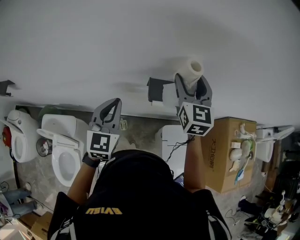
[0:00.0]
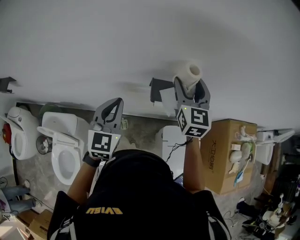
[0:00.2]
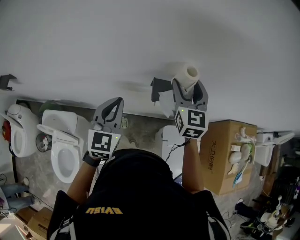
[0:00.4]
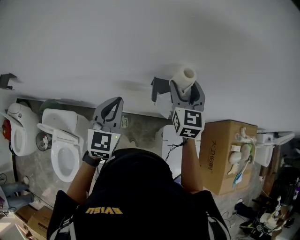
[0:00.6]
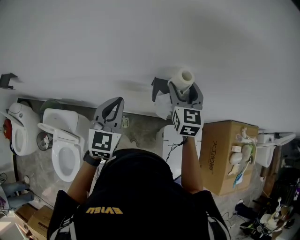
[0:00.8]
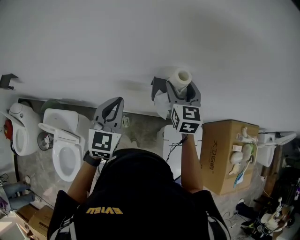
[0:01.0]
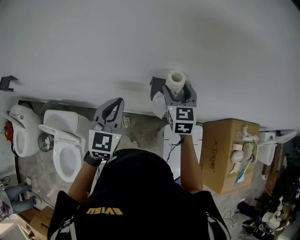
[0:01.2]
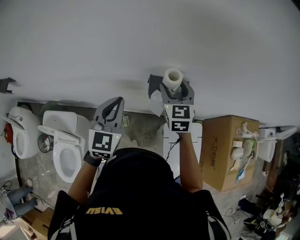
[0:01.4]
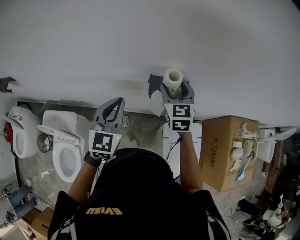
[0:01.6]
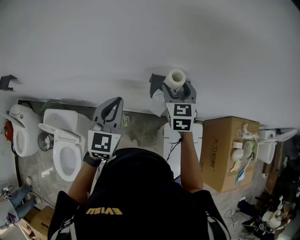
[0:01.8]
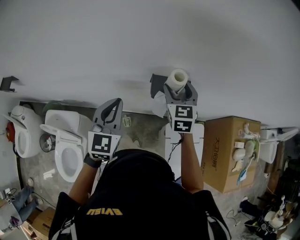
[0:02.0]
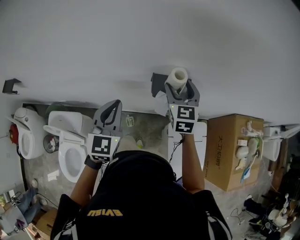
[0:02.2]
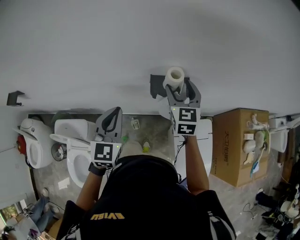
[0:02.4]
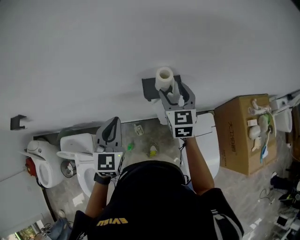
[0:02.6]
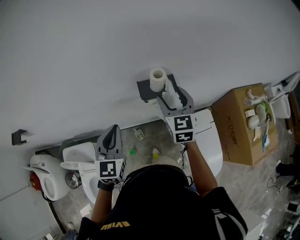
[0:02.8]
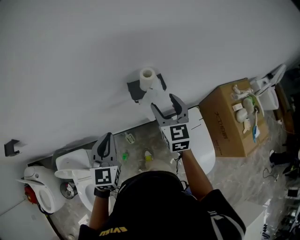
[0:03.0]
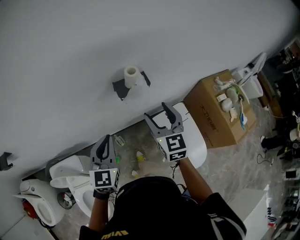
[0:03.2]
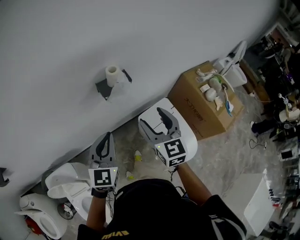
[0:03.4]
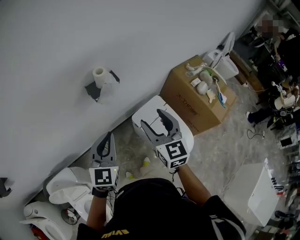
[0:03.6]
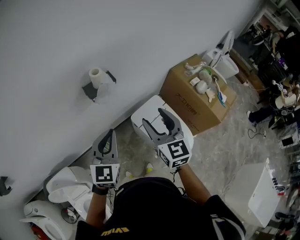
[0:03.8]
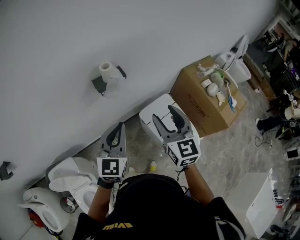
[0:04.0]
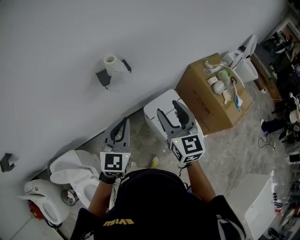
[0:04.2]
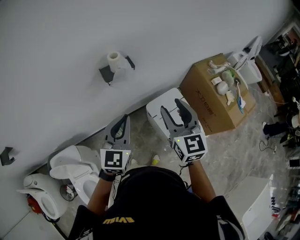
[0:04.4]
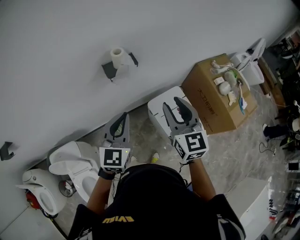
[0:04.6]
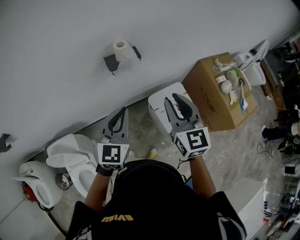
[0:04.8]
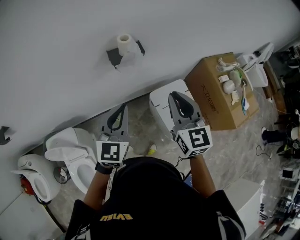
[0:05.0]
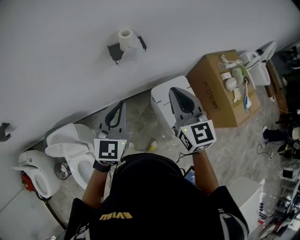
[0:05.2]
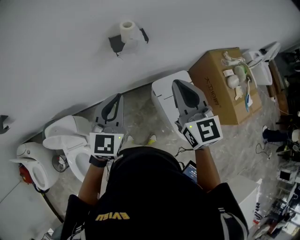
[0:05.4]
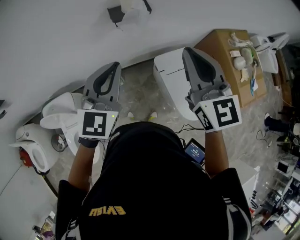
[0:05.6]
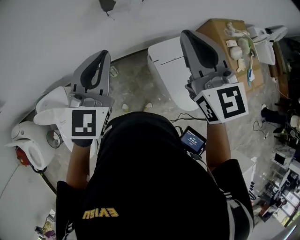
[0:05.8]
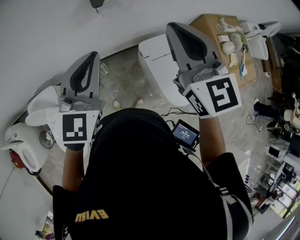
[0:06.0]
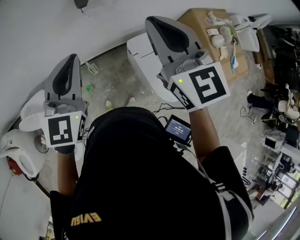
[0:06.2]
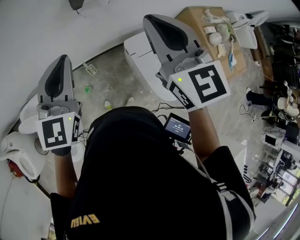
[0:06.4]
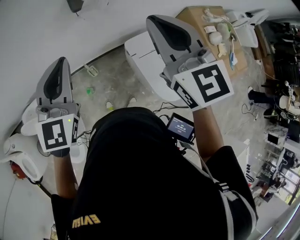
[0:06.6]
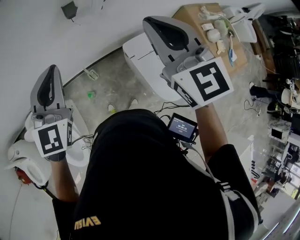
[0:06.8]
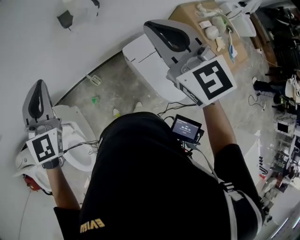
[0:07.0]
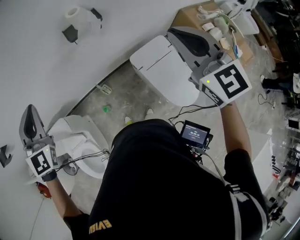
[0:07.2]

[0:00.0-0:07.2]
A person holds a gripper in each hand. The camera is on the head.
0:00.0 to 0:01.4: The right gripper moves downward, about 10 cm.
0:01.4 to 0:02.8: The two grippers go some 5 cm backward.
0:02.8 to 0:04.4: The right gripper moves backward and to the right, roughly 25 cm. The left gripper shifts about 15 cm to the right, and changes its angle by approximately 30 degrees.
0:04.4 to 0:05.8: The right gripper ends up some 5 cm from where it was, and closes up. The left gripper ends up about 5 cm from where it was.
0:05.8 to 0:07.2: The right gripper moves to the right, some 10 cm. Meanwhile the left gripper moves to the left, approximately 15 cm, and swivels some 30 degrees.

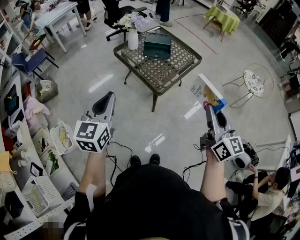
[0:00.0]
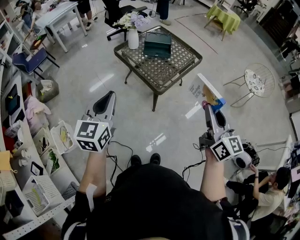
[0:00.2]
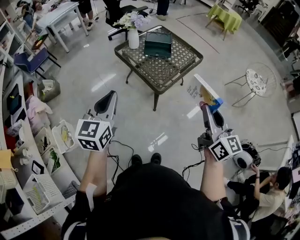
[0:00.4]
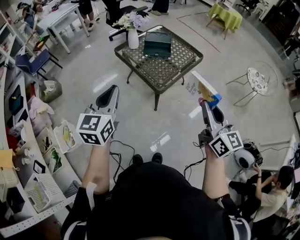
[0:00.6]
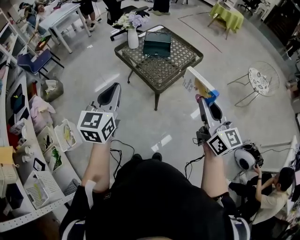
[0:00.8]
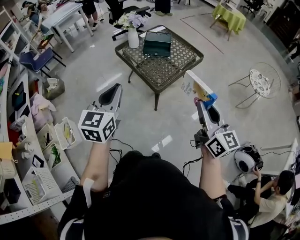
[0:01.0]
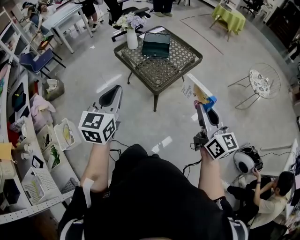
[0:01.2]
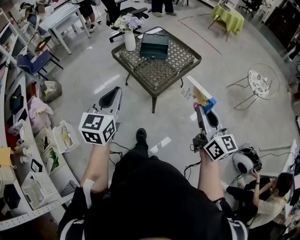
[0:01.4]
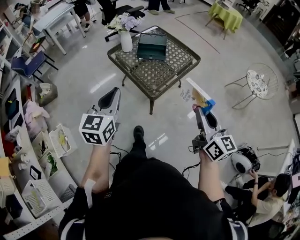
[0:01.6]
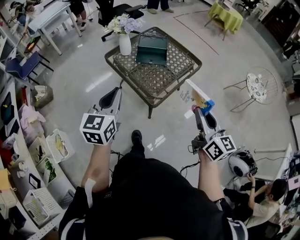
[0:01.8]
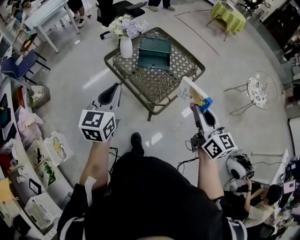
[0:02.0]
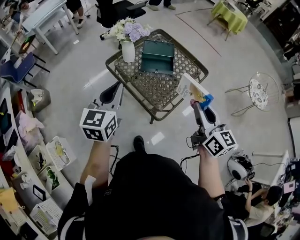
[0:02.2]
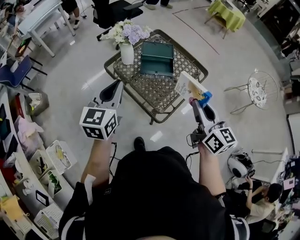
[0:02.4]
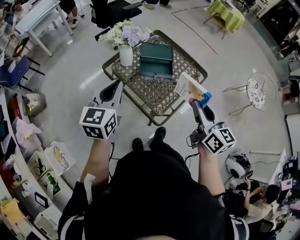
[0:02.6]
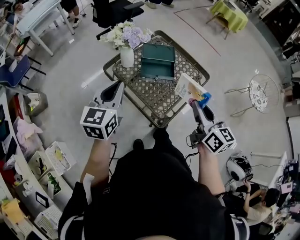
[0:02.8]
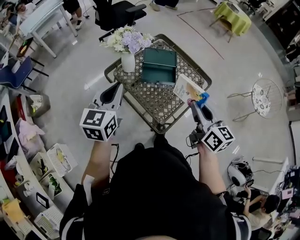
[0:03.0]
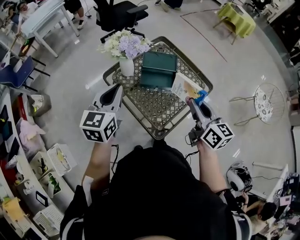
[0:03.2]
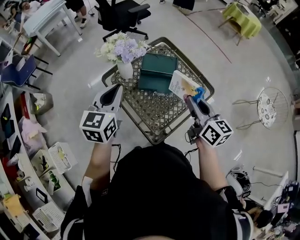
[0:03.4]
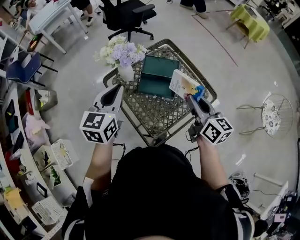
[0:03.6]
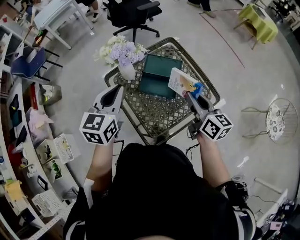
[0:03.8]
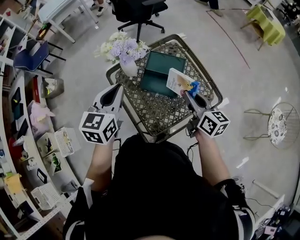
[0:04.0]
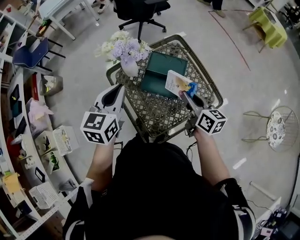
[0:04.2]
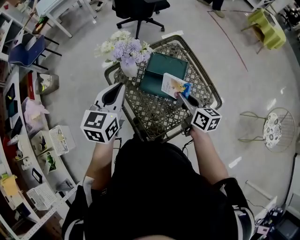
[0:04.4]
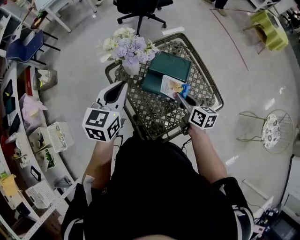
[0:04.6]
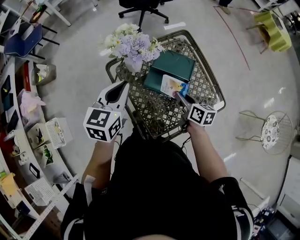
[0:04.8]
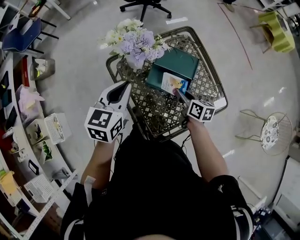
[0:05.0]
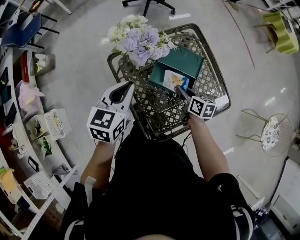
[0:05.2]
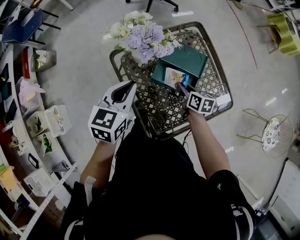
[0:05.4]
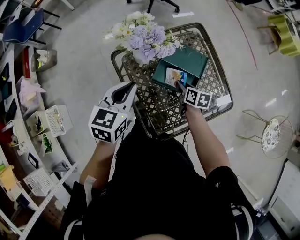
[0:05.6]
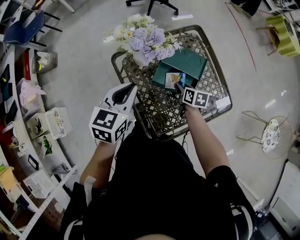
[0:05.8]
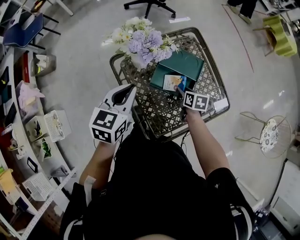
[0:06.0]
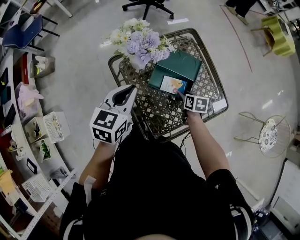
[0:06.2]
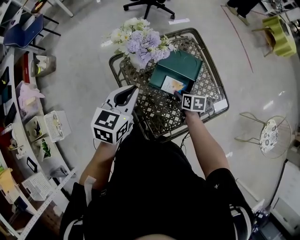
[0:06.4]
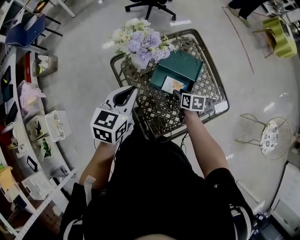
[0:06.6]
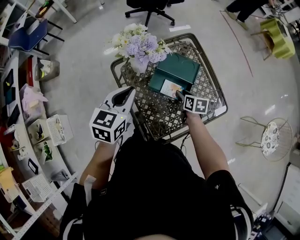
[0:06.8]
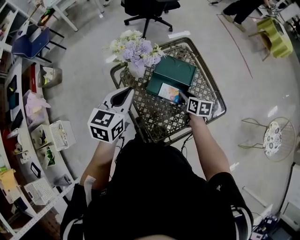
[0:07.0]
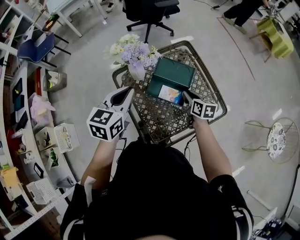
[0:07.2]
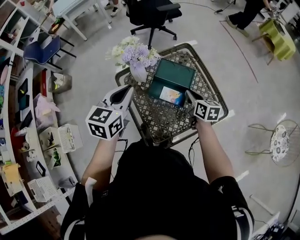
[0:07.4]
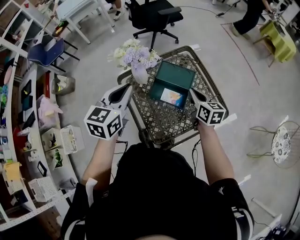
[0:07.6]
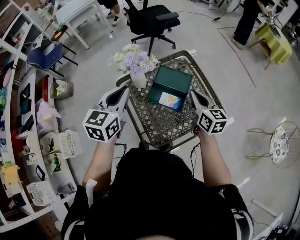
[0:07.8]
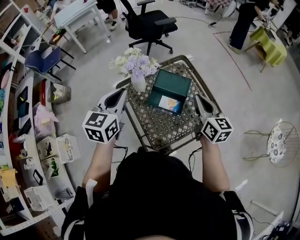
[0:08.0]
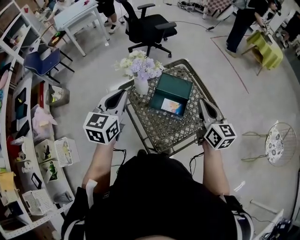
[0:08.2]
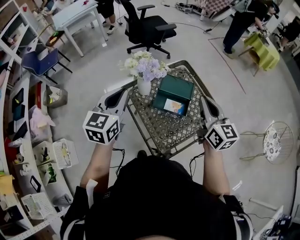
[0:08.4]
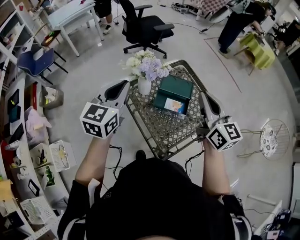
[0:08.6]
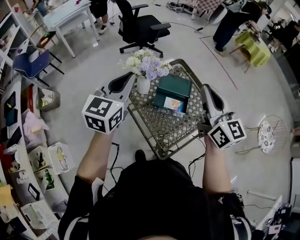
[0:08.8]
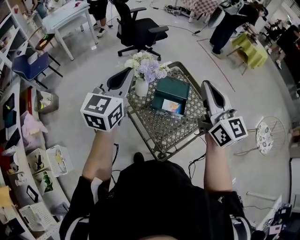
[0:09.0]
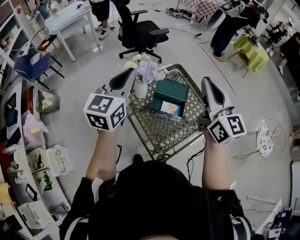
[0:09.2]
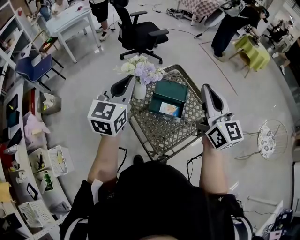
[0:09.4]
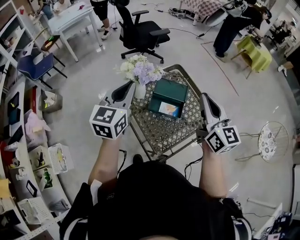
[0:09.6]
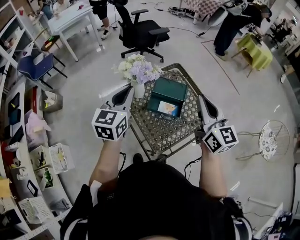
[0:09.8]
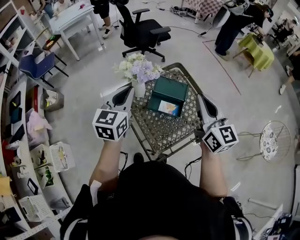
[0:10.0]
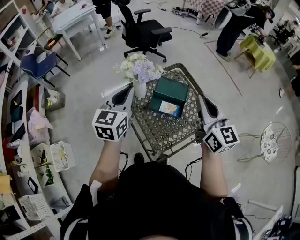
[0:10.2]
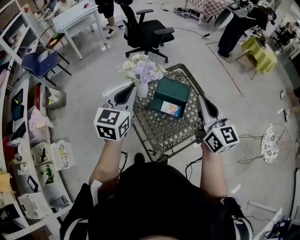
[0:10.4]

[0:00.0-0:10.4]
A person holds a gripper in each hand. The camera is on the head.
0:00.0 to 0:01.4: The right gripper shifts by approximately 5 cm; the left gripper shifts approximately 10 cm to the right.
0:01.4 to 0:03.0: The grippers both shift forward by some 35 cm.
0:03.0 to 0:04.4: The right gripper heads forward and downward, covering approximately 25 cm, and swivels approximately 30 degrees; the left gripper shifts roughly 15 cm forward and to the right.
0:04.4 to 0:06.0: The right gripper heads downward, covering about 20 cm, and tips its fingers downward by roughly 30 degrees, while the left gripper shifts approximately 5 cm downward.
0:06.0 to 0:07.4: The right gripper is displaced upward by approximately 15 cm, rotates about 20 degrees, and closes its fingers, while the left gripper goes roughly 10 cm upward.
0:07.4 to 0:09.0: The left gripper travels upward and to the left by about 15 cm, and changes its angle by roughly 20 degrees; the right gripper is displaced upward by some 35 cm, and tips its fingers upward by approximately 40 degrees.
0:09.0 to 0:10.4: The grippers both shift downward by approximately 5 cm.

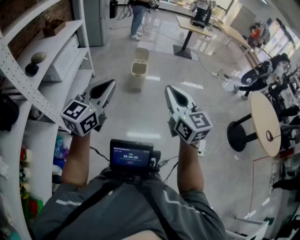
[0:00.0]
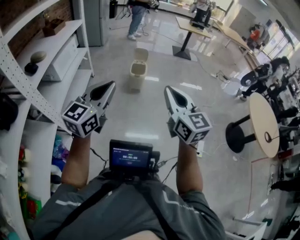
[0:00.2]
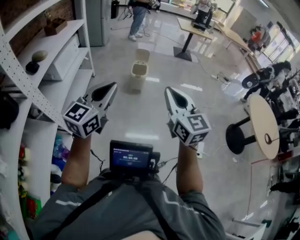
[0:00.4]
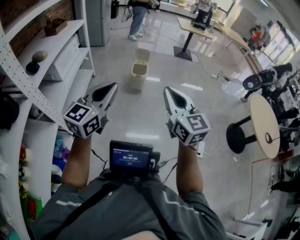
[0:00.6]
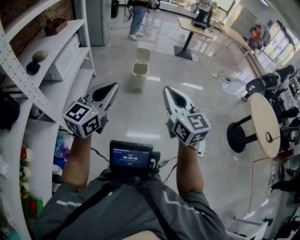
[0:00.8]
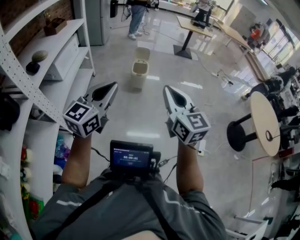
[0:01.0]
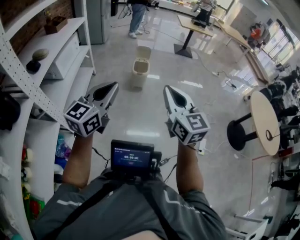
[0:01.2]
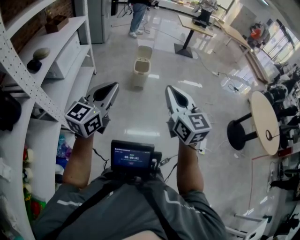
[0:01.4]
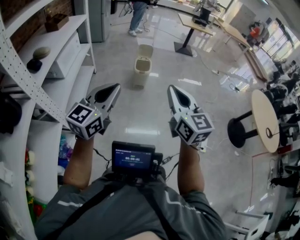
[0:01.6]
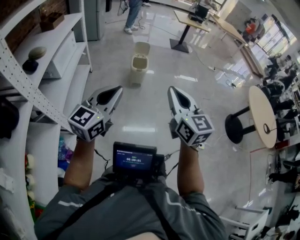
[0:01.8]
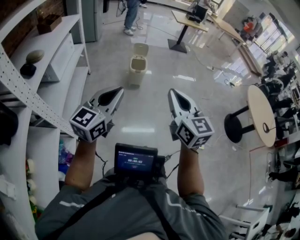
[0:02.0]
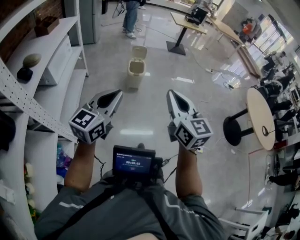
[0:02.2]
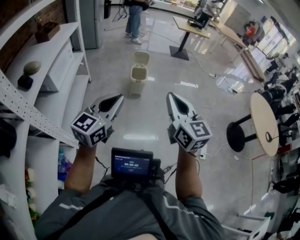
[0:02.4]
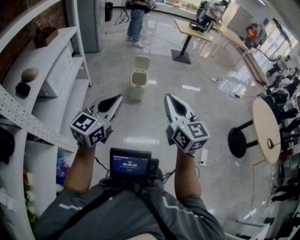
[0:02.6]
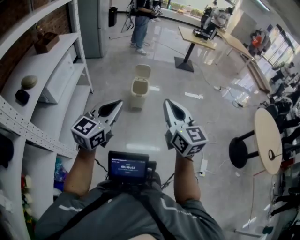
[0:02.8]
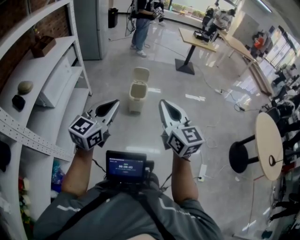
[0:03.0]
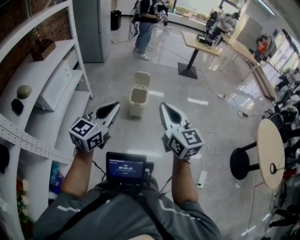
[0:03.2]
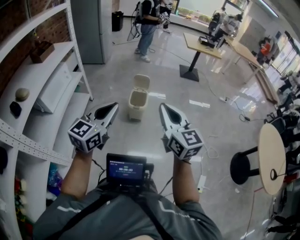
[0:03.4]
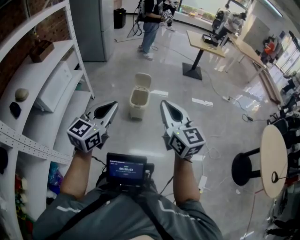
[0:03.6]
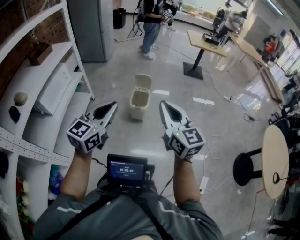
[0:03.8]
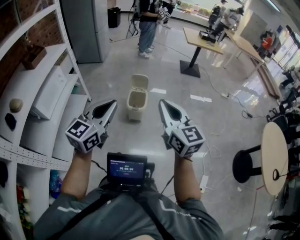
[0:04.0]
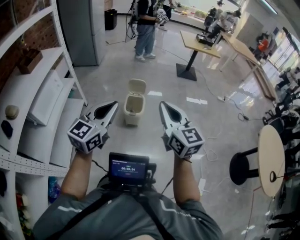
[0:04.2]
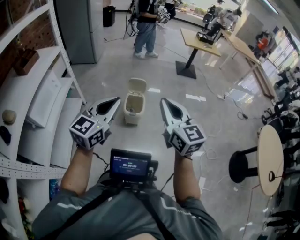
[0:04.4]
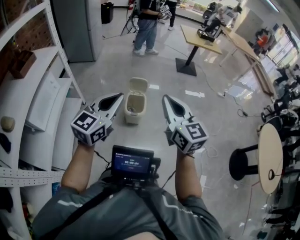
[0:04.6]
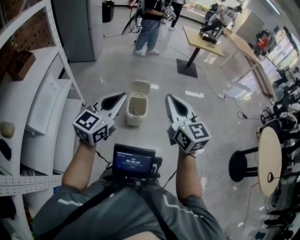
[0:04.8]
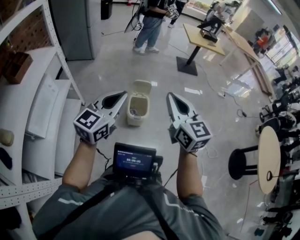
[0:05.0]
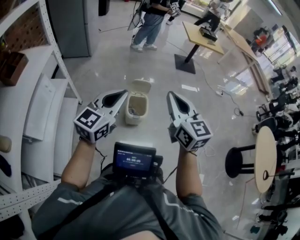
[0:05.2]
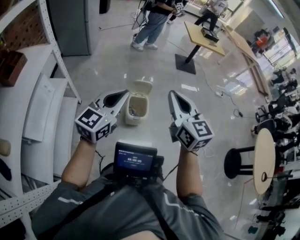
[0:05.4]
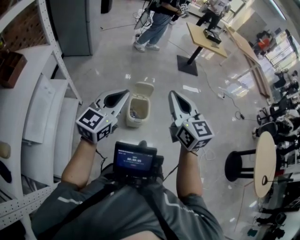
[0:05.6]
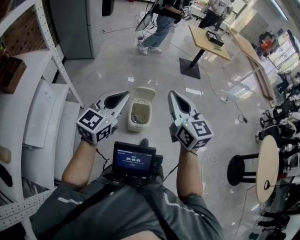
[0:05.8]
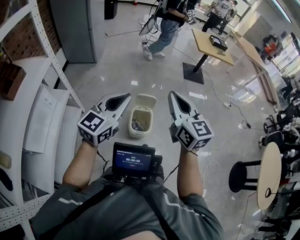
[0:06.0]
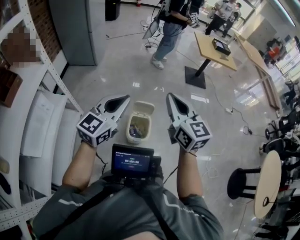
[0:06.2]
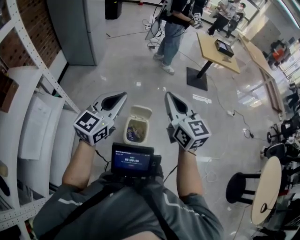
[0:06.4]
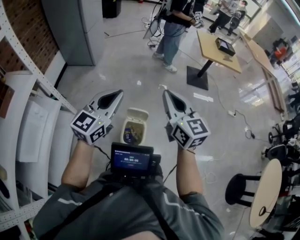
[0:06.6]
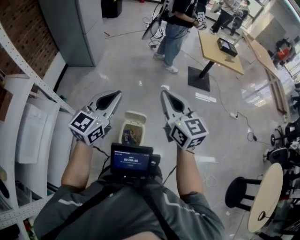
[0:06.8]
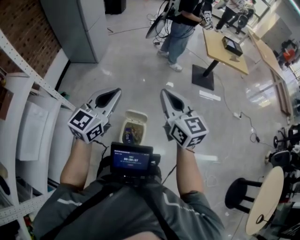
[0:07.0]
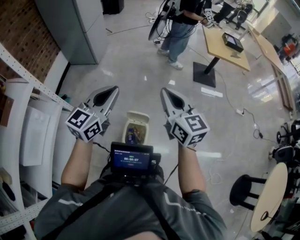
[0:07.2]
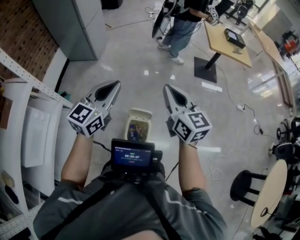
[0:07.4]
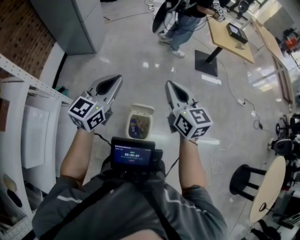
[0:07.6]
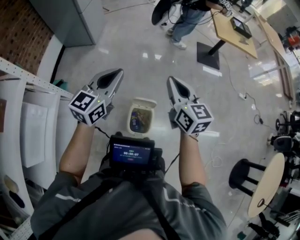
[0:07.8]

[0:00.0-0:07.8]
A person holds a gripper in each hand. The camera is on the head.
0:00.0 to 0:01.6: The grippers both shift to the left by approximately 5 cm.
0:01.6 to 0:03.2: Both grippers move forward, roughly 25 cm.
0:03.2 to 0:04.6: Both grippers move forward, some 20 cm.
0:04.6 to 0:06.2: The two grippers go roughly 25 cm forward.
0:06.2 to 0:07.8: The left gripper goes approximately 25 cm forward. The right gripper shifts some 25 cm forward and downward.
